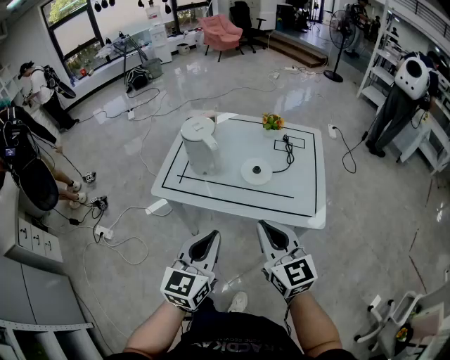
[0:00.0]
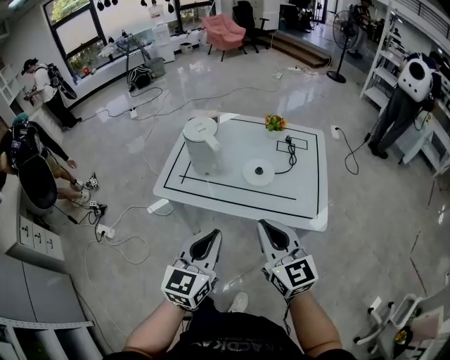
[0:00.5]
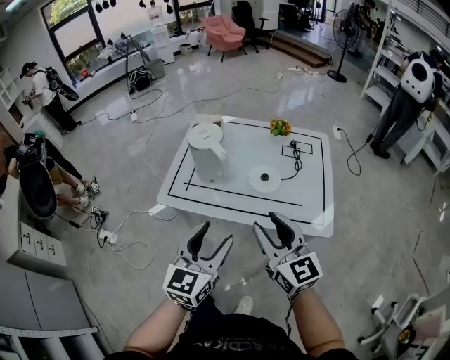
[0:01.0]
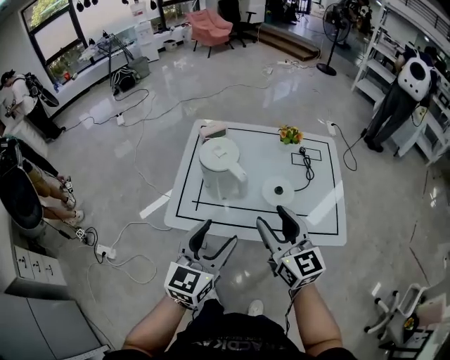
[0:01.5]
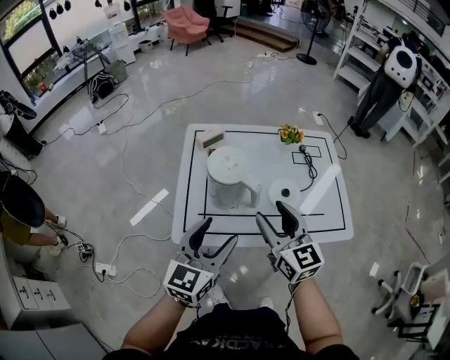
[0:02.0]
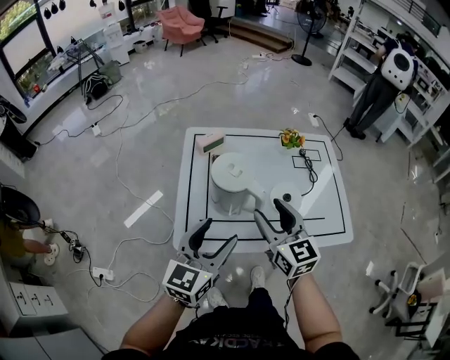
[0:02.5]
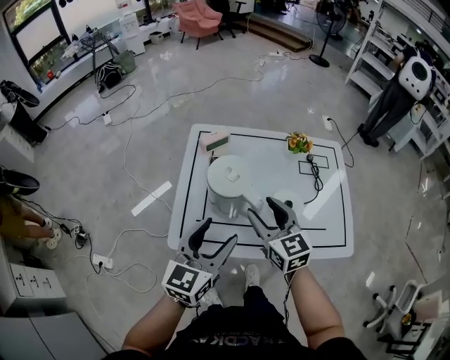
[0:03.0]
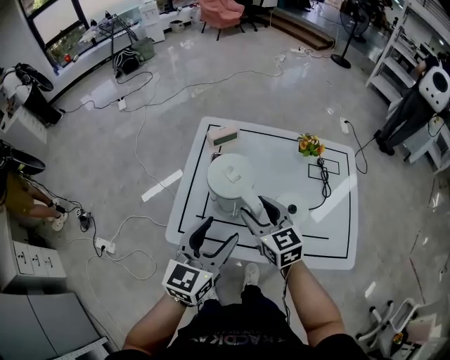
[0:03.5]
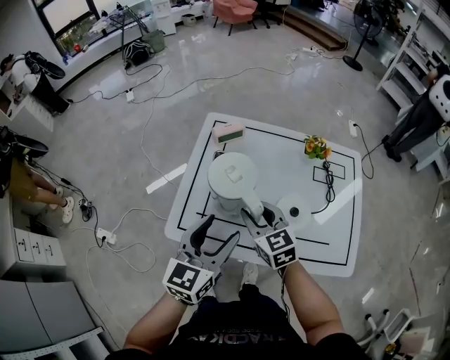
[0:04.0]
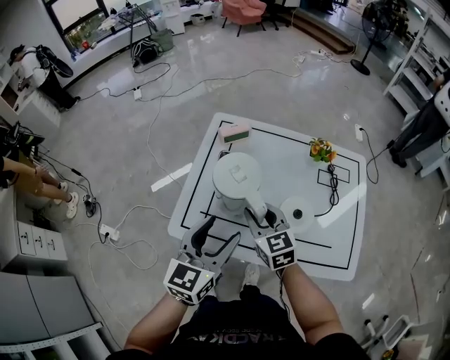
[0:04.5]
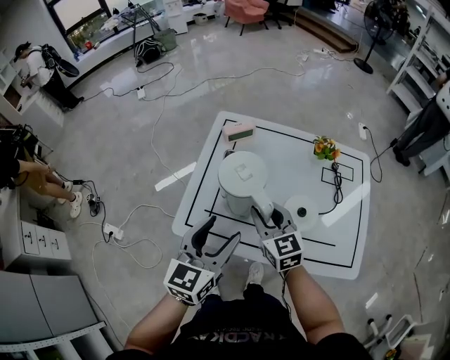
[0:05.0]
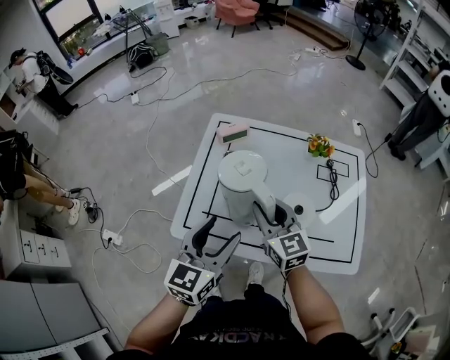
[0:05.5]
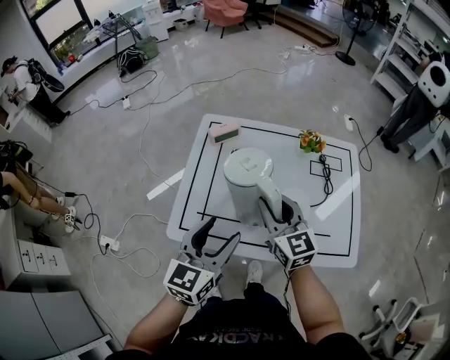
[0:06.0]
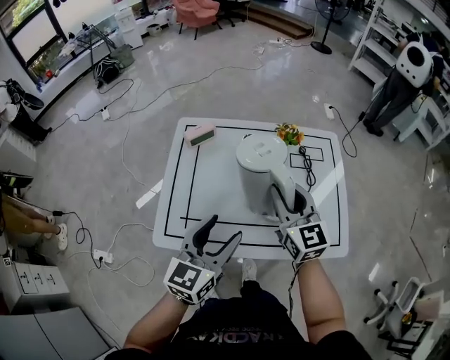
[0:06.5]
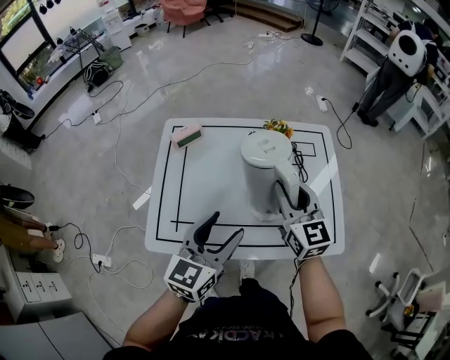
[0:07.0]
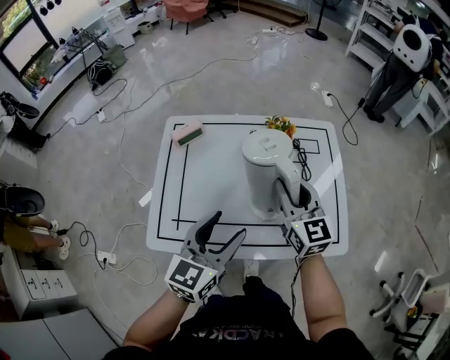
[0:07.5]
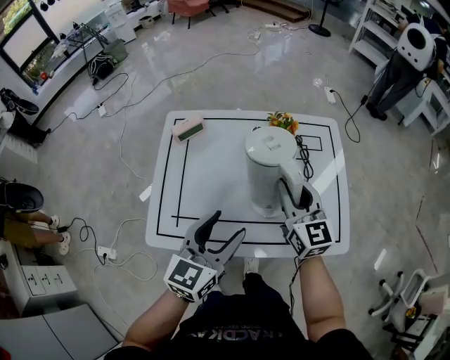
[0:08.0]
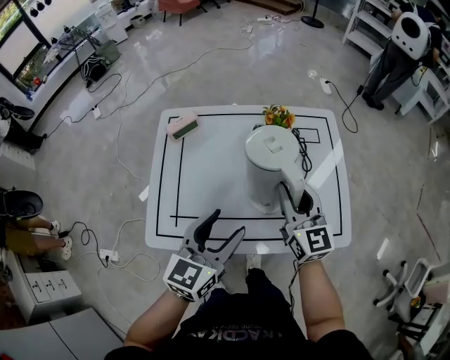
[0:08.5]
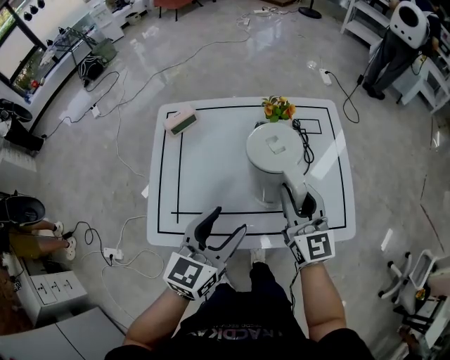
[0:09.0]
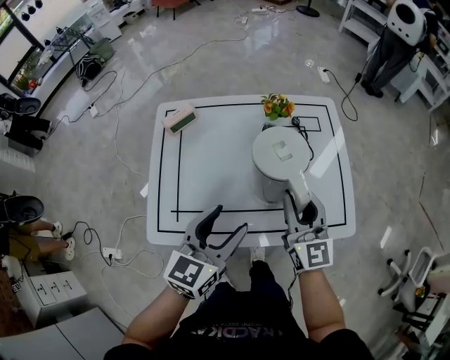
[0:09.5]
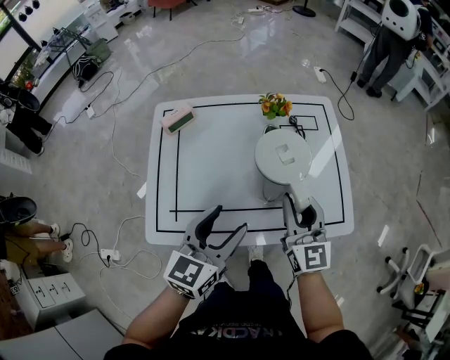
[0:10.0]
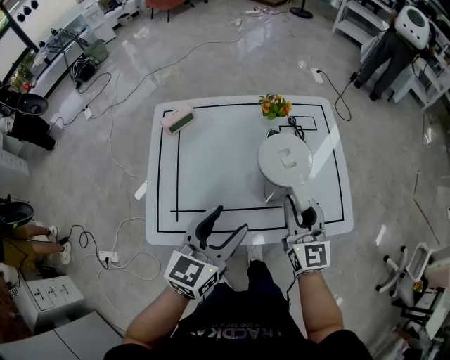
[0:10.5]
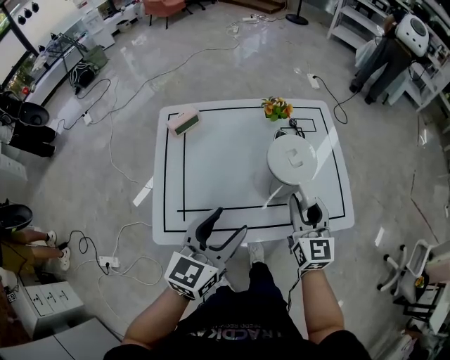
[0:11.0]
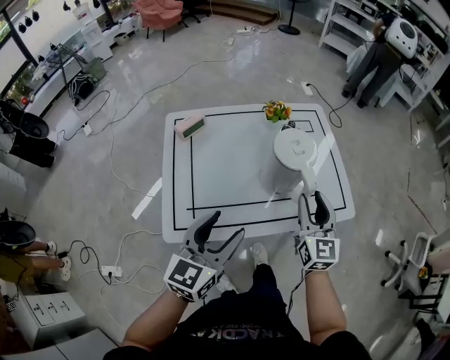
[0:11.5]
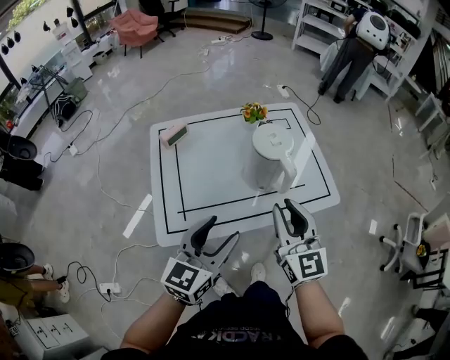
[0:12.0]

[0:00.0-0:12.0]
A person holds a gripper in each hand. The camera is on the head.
0:00.0 to 0:02.0: Both grippers travel together forward and to the left, about 25 cm. The left gripper opens up; the right gripper opens.
0:02.0 to 0:04.0: The left gripper shifts about 5 cm forward; the right gripper heads downward and forward, covering approximately 15 cm, turns by some 30 degrees, and closes up.
0:04.0 to 0:06.0: The right gripper heads upward and to the right, covering about 10 cm.
0:06.0 to 0:08.0: Both grippers travel together to the right, approximately 10 cm.
0:08.0 to 0:10.0: The right gripper is displaced backward by some 5 cm.
0:10.0 to 0:12.0: The left gripper moves backward, about 10 cm, while the right gripper travels backward and upward by about 15 cm.

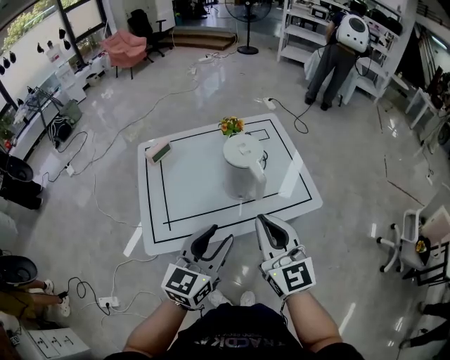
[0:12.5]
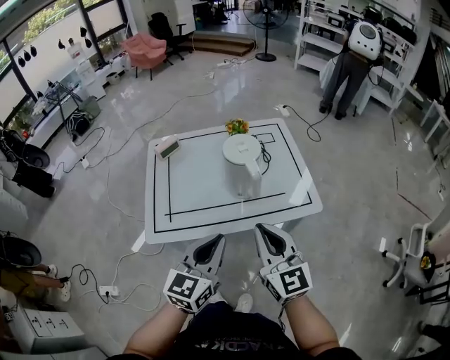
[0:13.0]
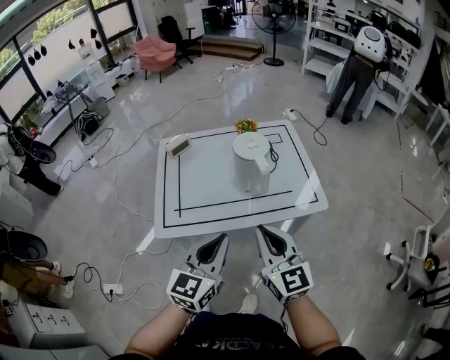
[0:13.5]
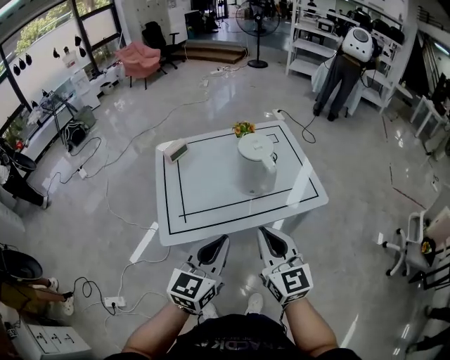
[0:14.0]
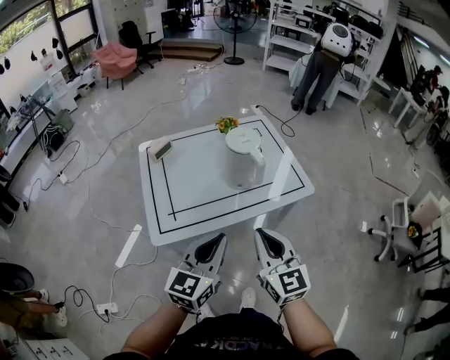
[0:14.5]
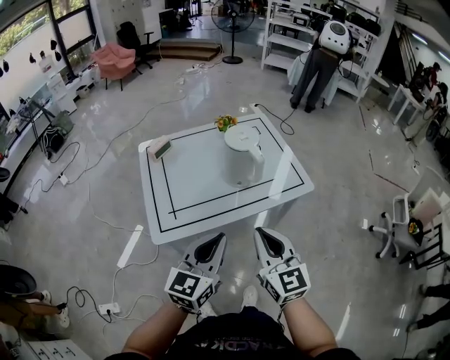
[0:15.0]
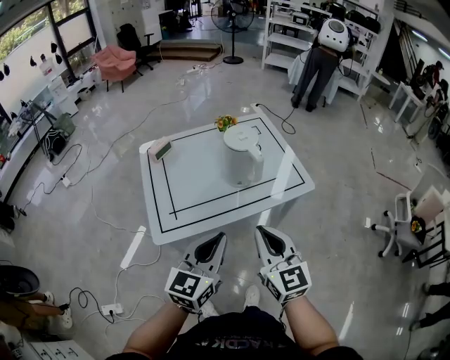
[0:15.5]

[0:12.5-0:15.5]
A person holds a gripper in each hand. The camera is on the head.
0:12.5 to 0:14.0: Both grippers move backward, some 10 cm. The left gripper closes.
0:14.0 to 0:15.5: There are only small adjustments of the grippers.

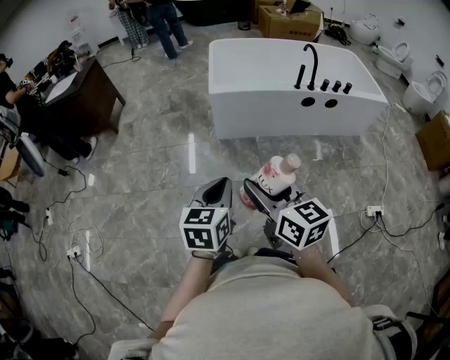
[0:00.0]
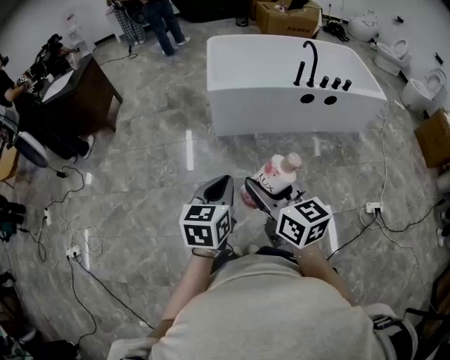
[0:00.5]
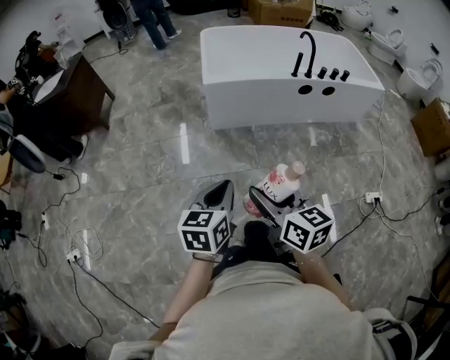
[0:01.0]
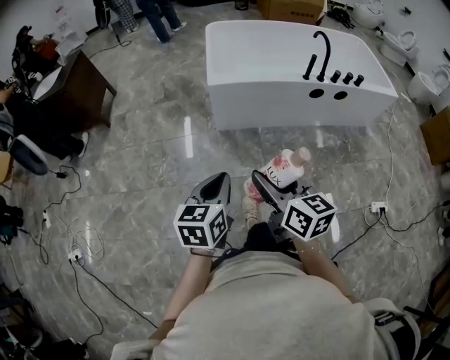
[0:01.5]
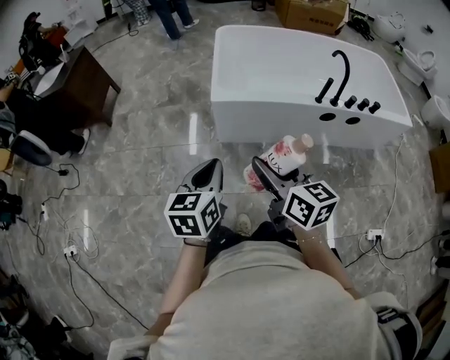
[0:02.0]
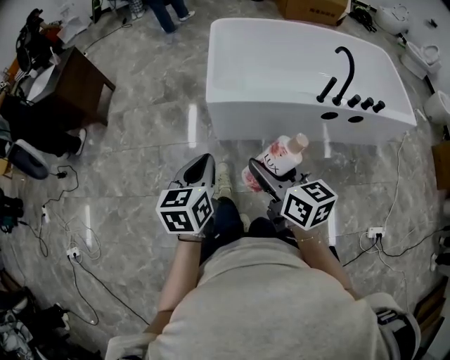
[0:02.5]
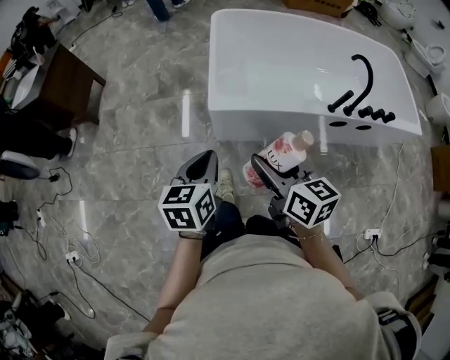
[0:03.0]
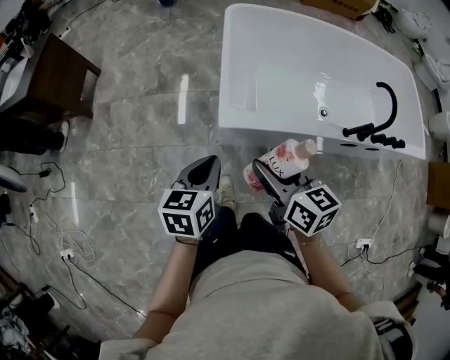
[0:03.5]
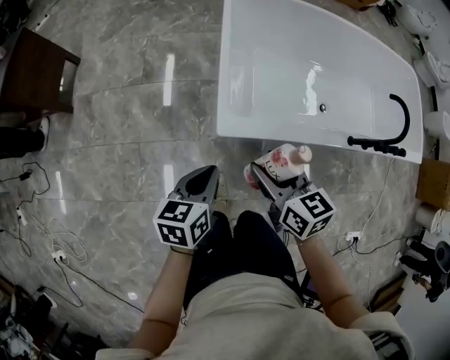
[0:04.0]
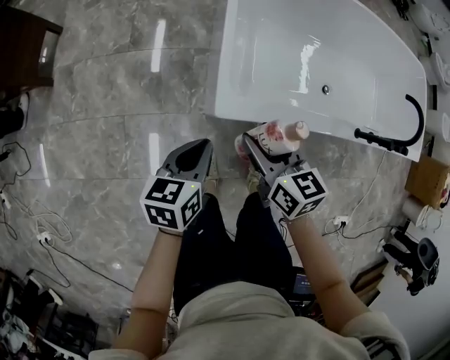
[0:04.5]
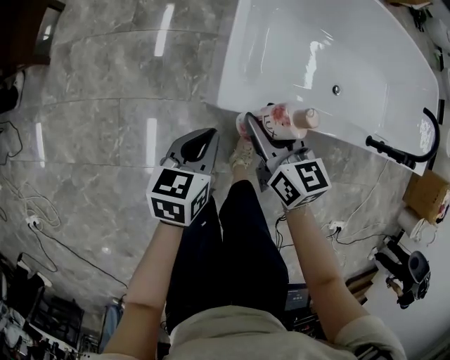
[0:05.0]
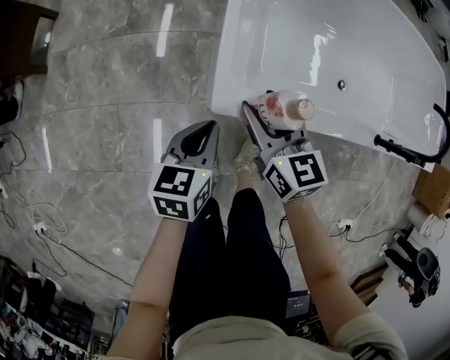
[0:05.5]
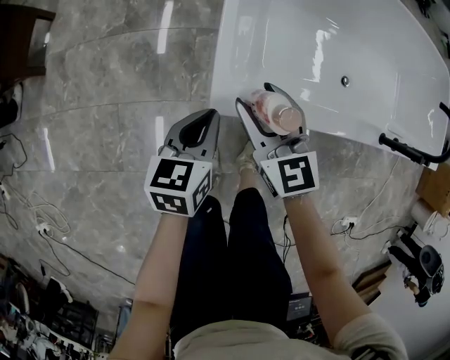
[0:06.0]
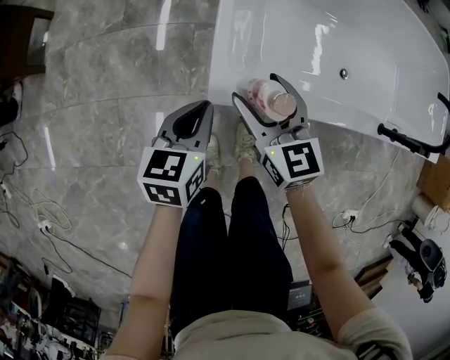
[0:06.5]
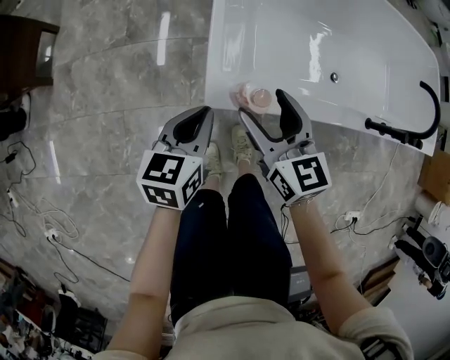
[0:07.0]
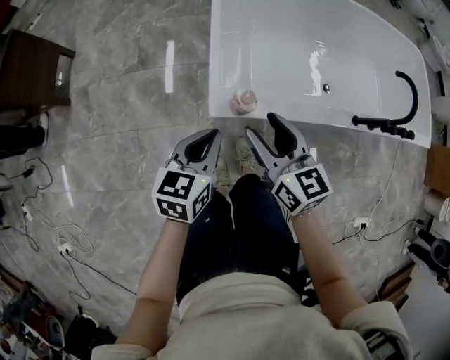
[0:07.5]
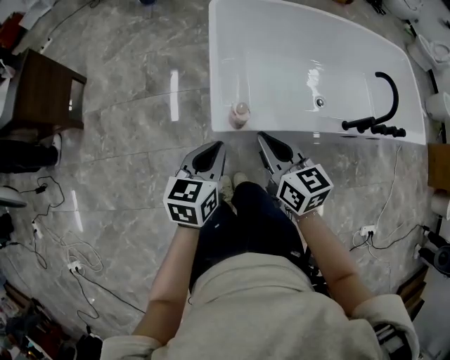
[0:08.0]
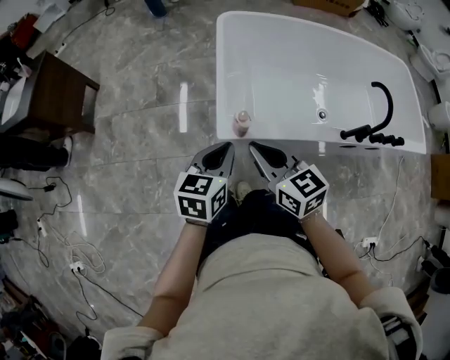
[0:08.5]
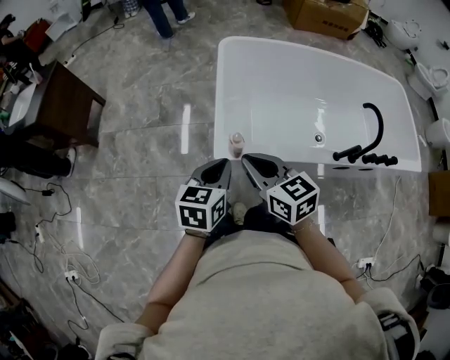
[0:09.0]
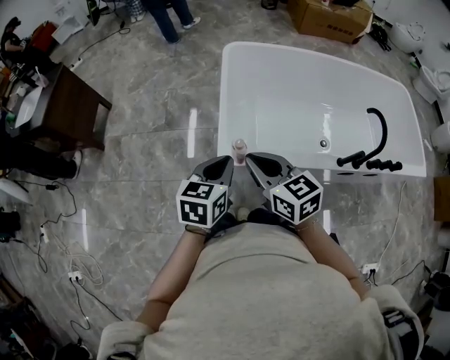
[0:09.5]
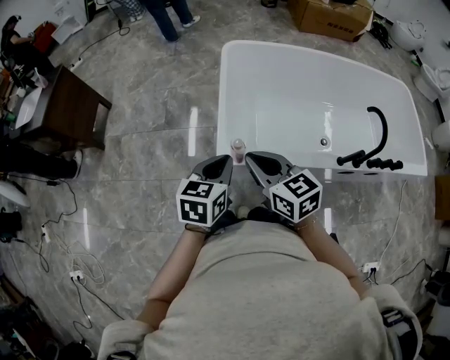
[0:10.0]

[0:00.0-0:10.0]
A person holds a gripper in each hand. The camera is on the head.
0:00.0 to 0:02.0: The grippers both shift forward by approximately 30 cm.
0:02.0 to 0:04.0: The pair of grippers is taken forward, some 40 cm. The two grippers go some 15 cm downward. The left gripper turns by roughly 20 degrees.
0:04.0 to 0:06.0: Both grippers move downward and forward, approximately 20 cm. The right gripper swivels some 30 degrees.
0:06.0 to 0:08.0: The right gripper heads upward and backward, covering some 25 cm, turns by some 20 degrees, and closes. Meanwhile the left gripper moves upward, about 20 cm.
0:08.0 to 0:10.0: Both grippers move upward, about 5 cm.

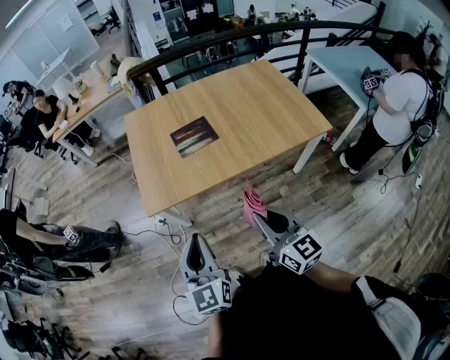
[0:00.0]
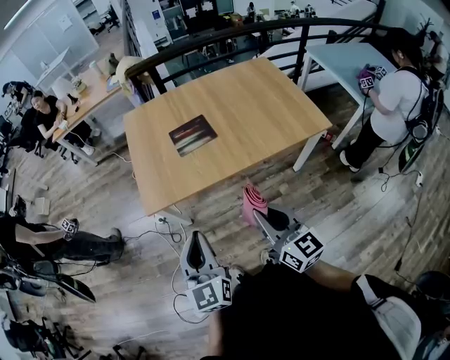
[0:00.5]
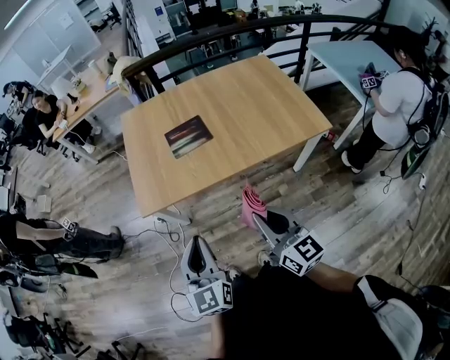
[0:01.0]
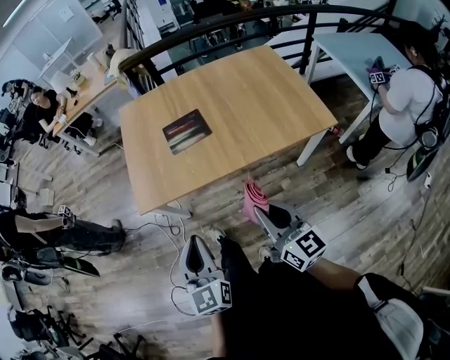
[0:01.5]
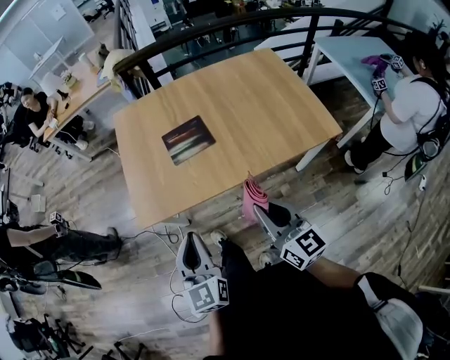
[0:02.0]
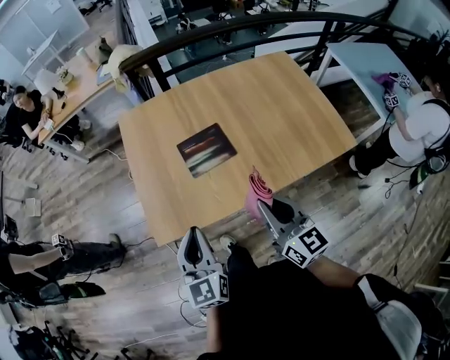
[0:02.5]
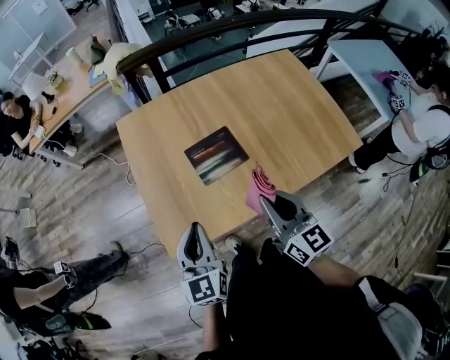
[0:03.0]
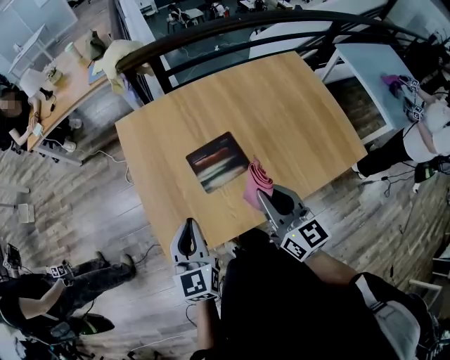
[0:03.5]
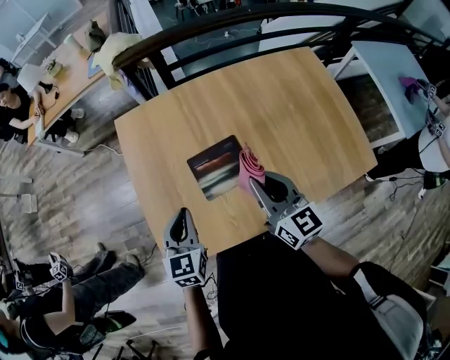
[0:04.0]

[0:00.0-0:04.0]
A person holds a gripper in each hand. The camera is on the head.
0:00.0 to 0:02.0: The two grippers go about 15 cm forward and to the right.
0:02.0 to 0:04.0: The two grippers go some 35 cm forward. The left gripper turns by about 20 degrees.
